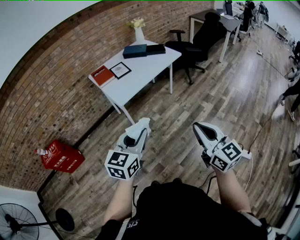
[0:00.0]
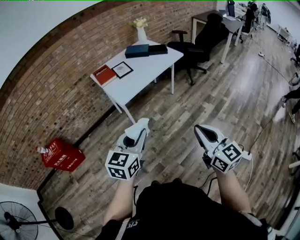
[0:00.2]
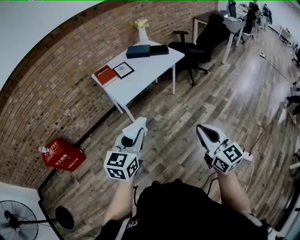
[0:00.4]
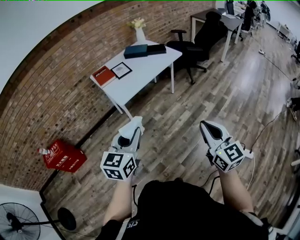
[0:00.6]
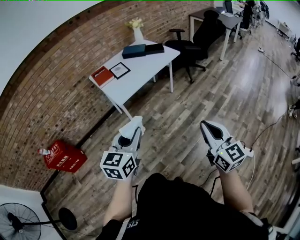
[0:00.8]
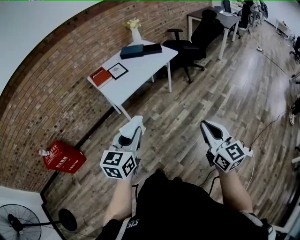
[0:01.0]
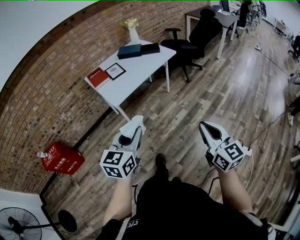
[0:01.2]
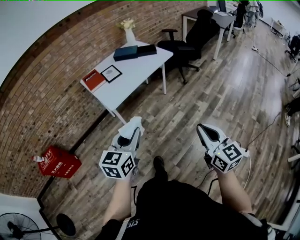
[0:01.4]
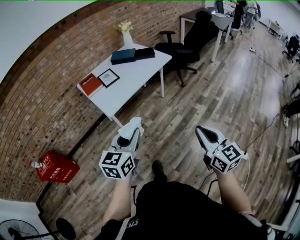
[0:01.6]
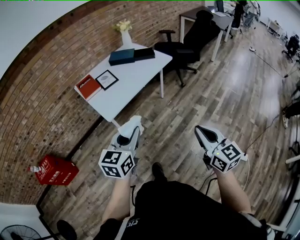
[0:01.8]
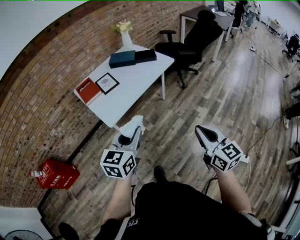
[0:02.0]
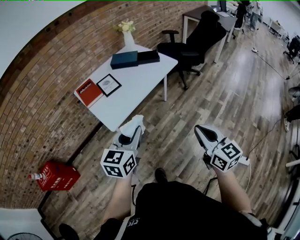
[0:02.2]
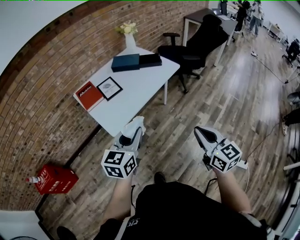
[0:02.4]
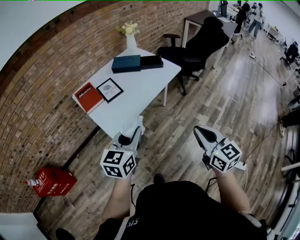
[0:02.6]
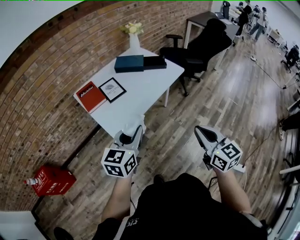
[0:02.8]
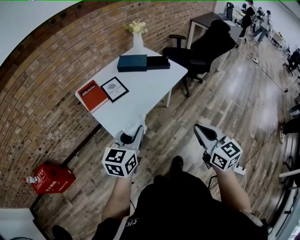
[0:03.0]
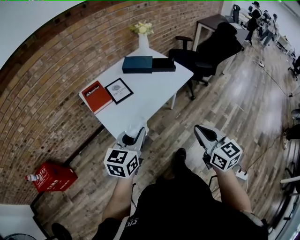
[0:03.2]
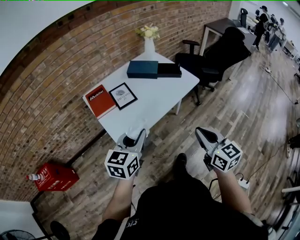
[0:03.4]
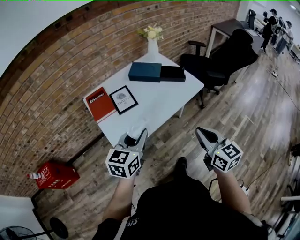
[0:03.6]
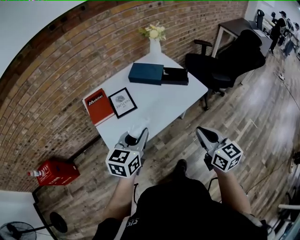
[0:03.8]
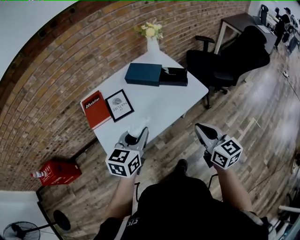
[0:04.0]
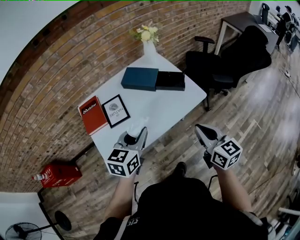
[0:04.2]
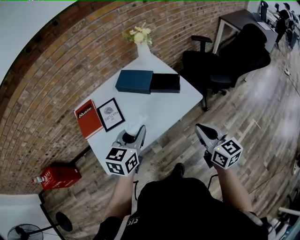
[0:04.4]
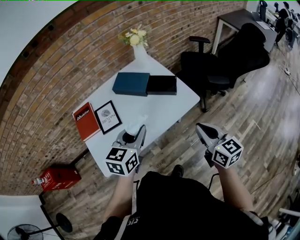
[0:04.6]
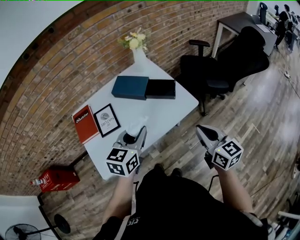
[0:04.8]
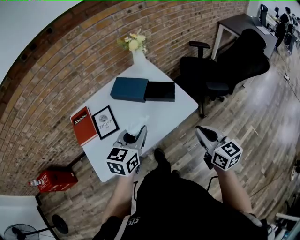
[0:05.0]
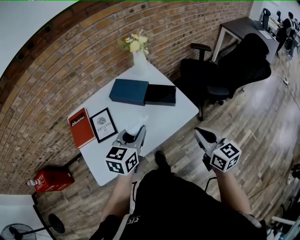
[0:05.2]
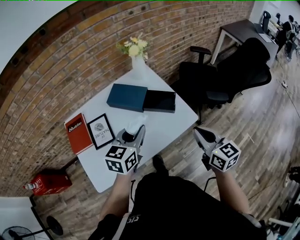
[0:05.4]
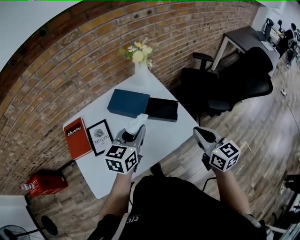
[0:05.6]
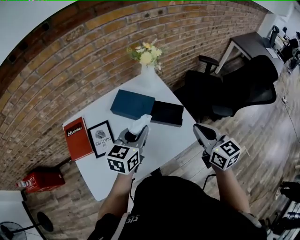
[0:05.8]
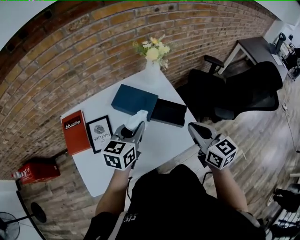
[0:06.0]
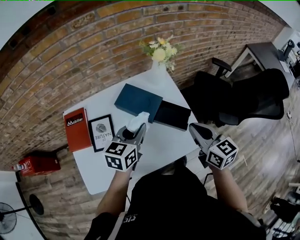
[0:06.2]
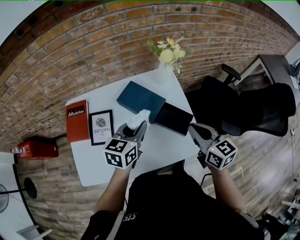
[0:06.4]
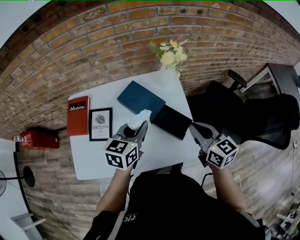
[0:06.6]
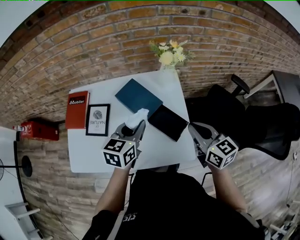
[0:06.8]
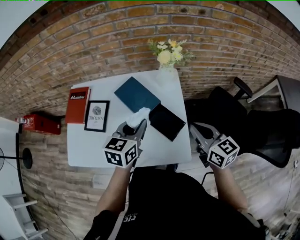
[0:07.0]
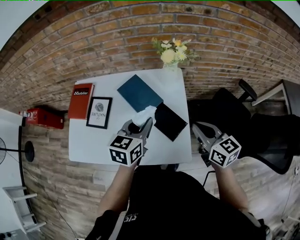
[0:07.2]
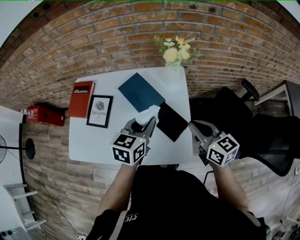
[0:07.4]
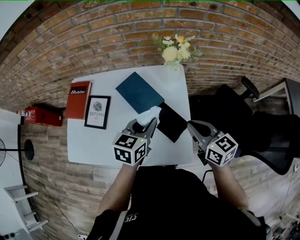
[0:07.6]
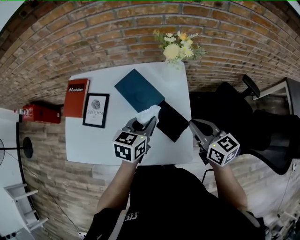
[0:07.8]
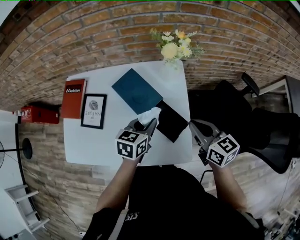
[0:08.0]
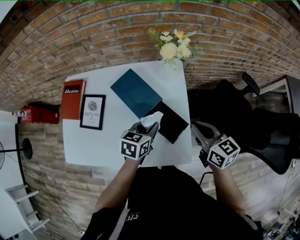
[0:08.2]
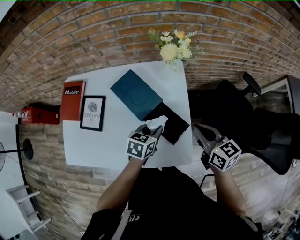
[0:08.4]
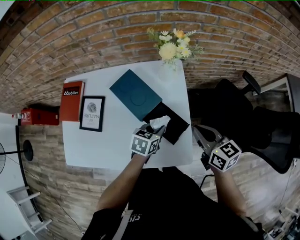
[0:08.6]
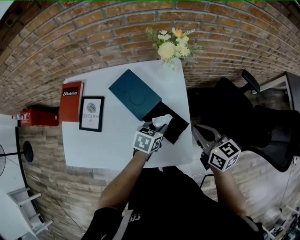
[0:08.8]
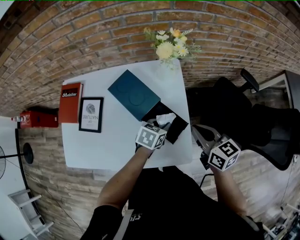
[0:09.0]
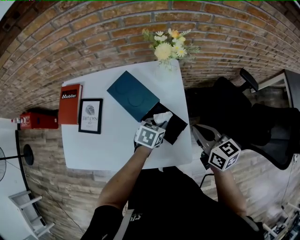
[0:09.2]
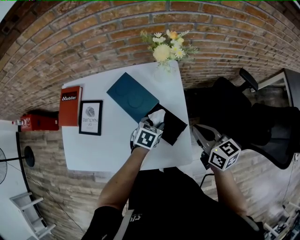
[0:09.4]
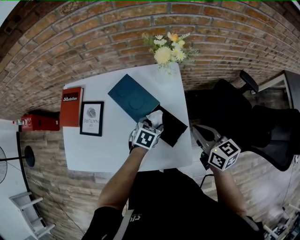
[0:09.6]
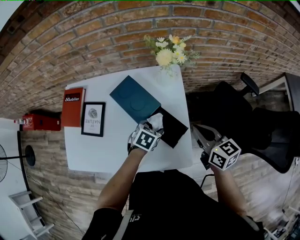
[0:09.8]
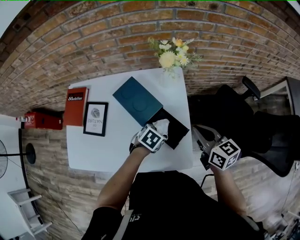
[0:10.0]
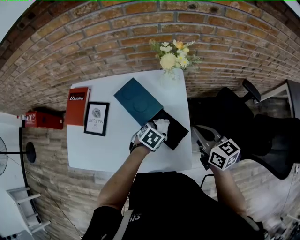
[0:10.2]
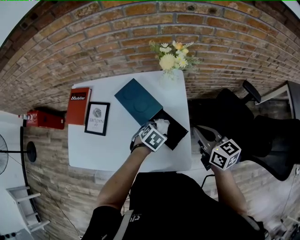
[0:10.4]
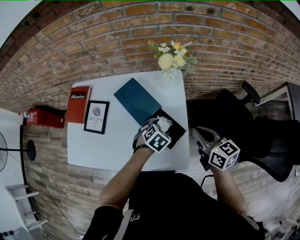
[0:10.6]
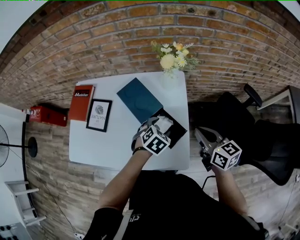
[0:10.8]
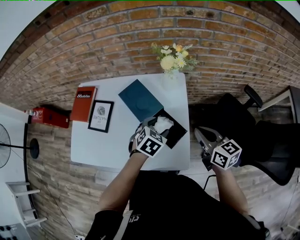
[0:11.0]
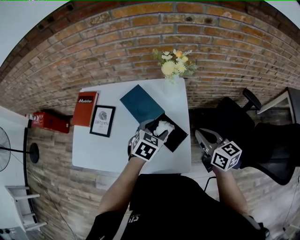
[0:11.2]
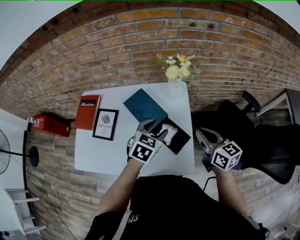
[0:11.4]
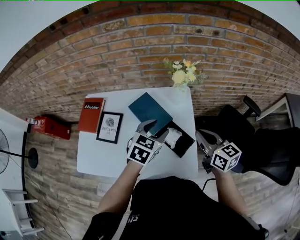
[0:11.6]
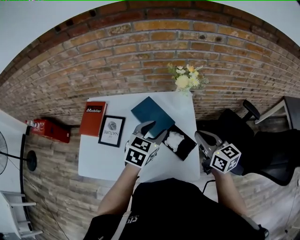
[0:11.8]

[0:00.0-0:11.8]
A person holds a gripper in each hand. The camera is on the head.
0:00.0 to 0:01.4: The right gripper goes some 5 cm to the right.
0:01.4 to 0:03.0: The right gripper moves forward and to the left, roughly 30 cm, while the left gripper is displaced forward by some 30 cm.
0:03.0 to 0:04.4: Both grippers move forward and to the right, approximately 35 cm.
0:04.4 to 0:06.0: The grippers both shift forward by some 25 cm.
0:06.0 to 0:07.4: The right gripper changes place by roughly 15 cm, and rotates some 30 degrees. Meanwhile the left gripper ends up approximately 10 cm from where it was, and changes its angle by roughly 20 degrees.
0:07.4 to 0:08.8: The left gripper heads downward, covering about 15 cm, and changes its angle by about 30 degrees; the right gripper shifts approximately 5 cm downward.
0:08.8 to 0:10.4: The left gripper rotates about 30 degrees, and opens up.
0:10.4 to 0:11.8: The right gripper goes roughly 10 cm upward and to the left. Meanwhile the left gripper shifts about 20 cm upward, and tips its fingers upward by some 30 degrees.

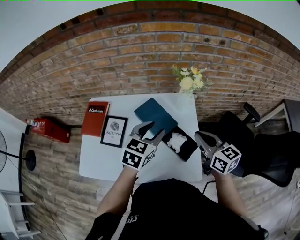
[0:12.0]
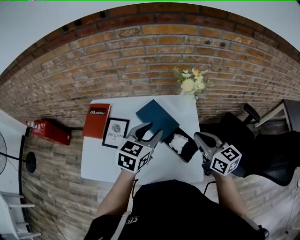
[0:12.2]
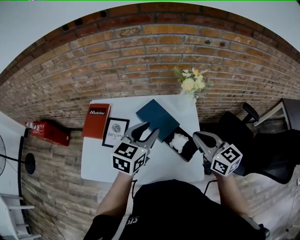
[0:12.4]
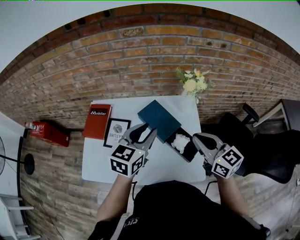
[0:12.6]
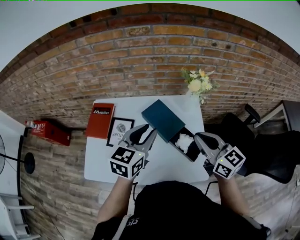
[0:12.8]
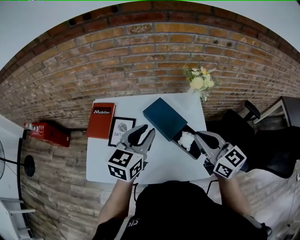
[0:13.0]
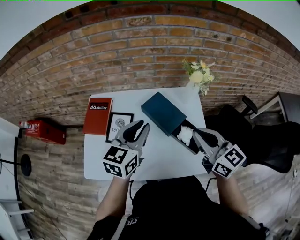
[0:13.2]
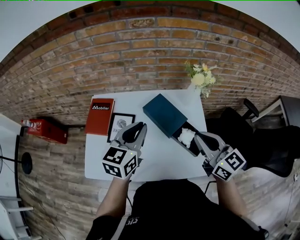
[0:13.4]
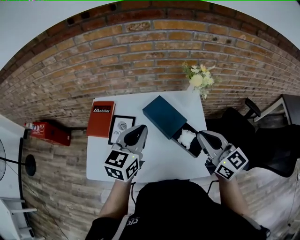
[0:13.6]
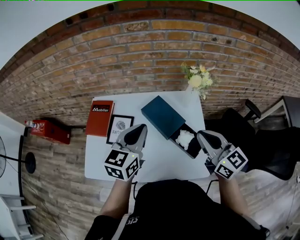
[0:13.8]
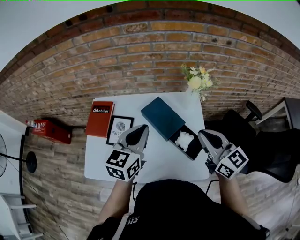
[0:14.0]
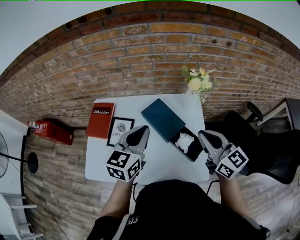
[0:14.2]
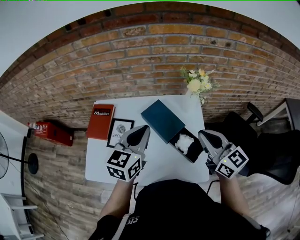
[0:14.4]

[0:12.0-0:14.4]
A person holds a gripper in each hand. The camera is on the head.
0:12.0 to 0:13.2: The left gripper travels to the left by some 15 cm, and closes its fingers; the right gripper travels to the left and upward by roughly 10 cm.
0:13.2 to 0:14.4: The right gripper travels to the right by roughly 5 cm.

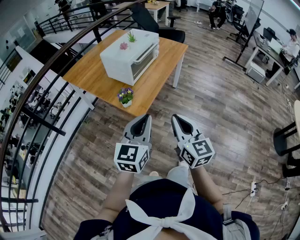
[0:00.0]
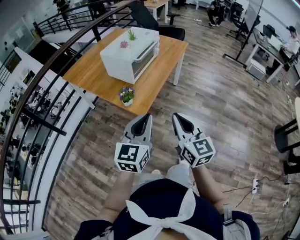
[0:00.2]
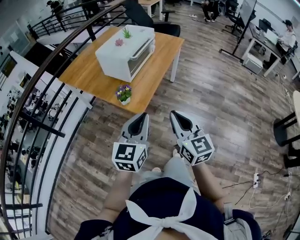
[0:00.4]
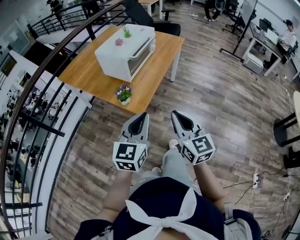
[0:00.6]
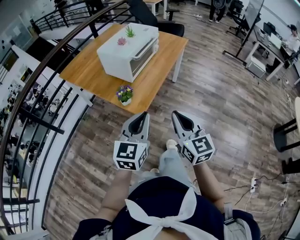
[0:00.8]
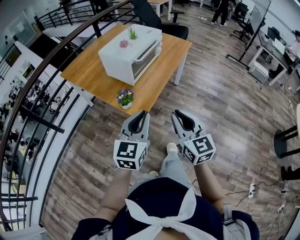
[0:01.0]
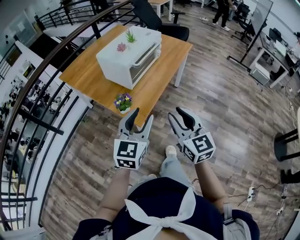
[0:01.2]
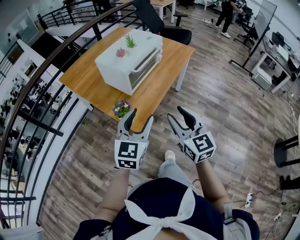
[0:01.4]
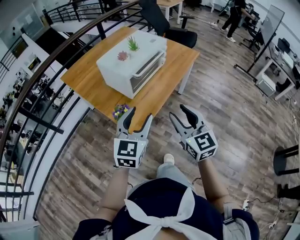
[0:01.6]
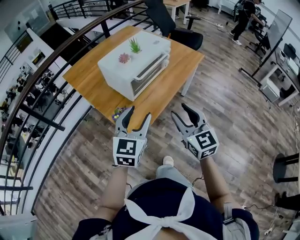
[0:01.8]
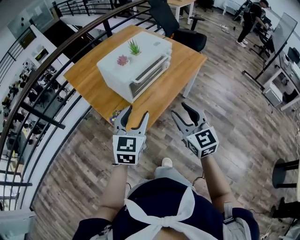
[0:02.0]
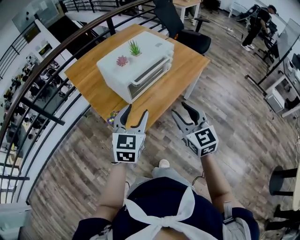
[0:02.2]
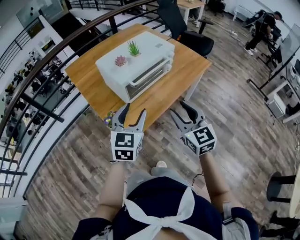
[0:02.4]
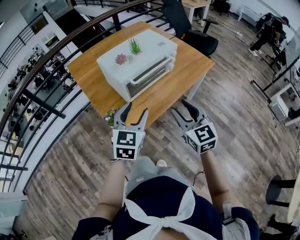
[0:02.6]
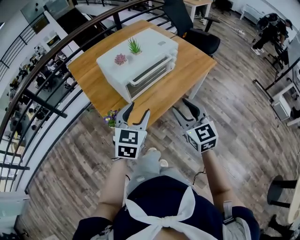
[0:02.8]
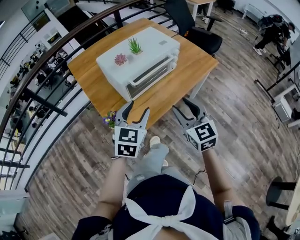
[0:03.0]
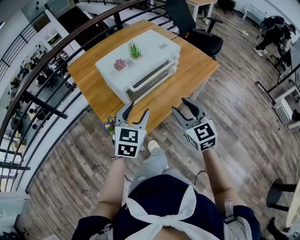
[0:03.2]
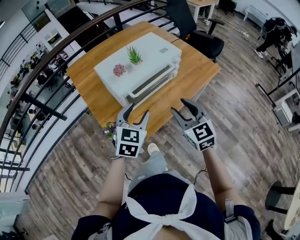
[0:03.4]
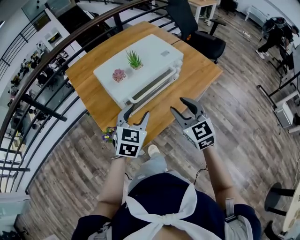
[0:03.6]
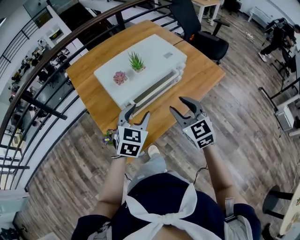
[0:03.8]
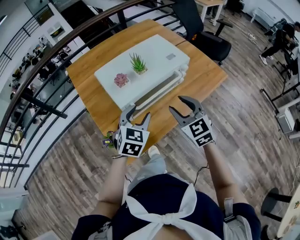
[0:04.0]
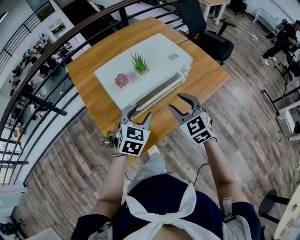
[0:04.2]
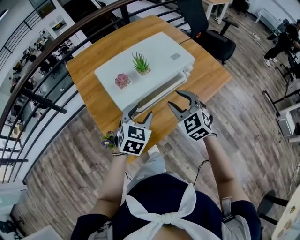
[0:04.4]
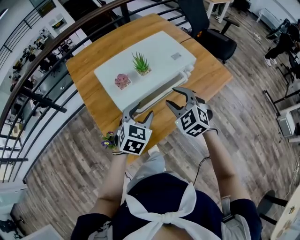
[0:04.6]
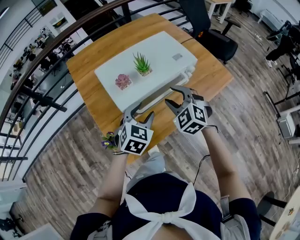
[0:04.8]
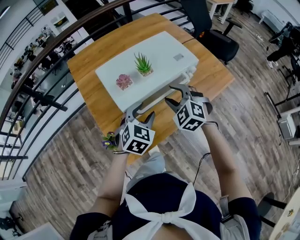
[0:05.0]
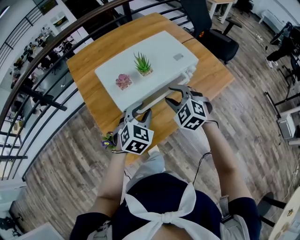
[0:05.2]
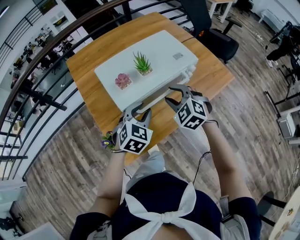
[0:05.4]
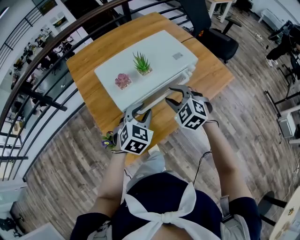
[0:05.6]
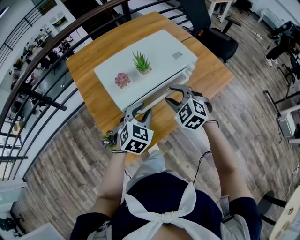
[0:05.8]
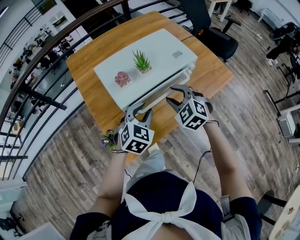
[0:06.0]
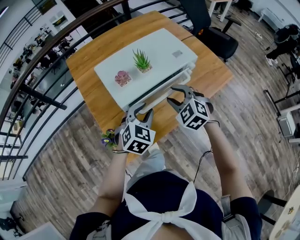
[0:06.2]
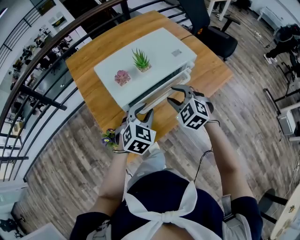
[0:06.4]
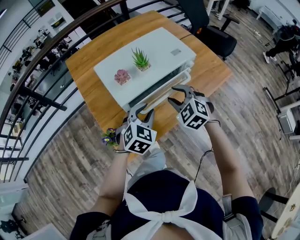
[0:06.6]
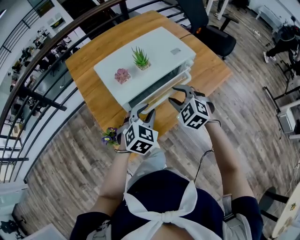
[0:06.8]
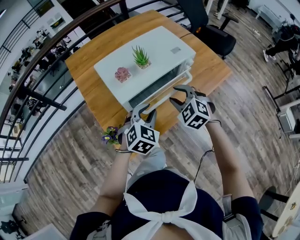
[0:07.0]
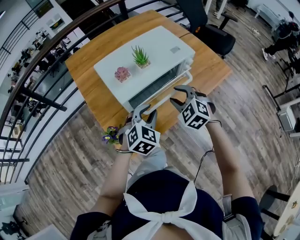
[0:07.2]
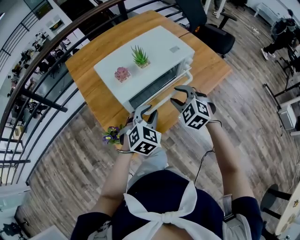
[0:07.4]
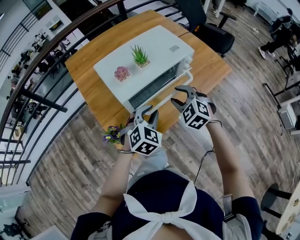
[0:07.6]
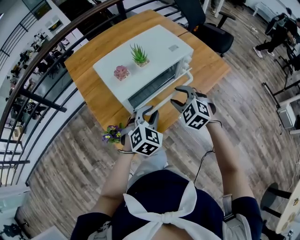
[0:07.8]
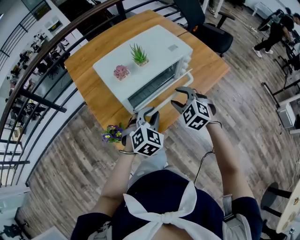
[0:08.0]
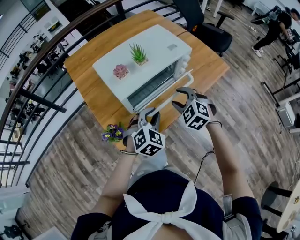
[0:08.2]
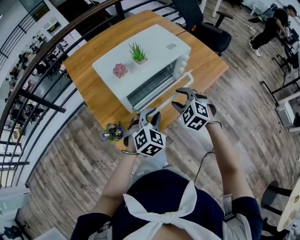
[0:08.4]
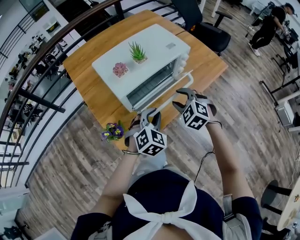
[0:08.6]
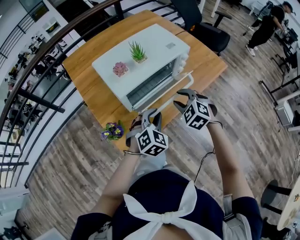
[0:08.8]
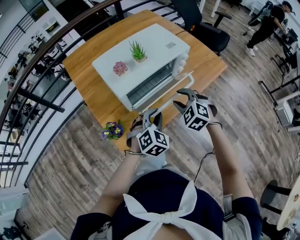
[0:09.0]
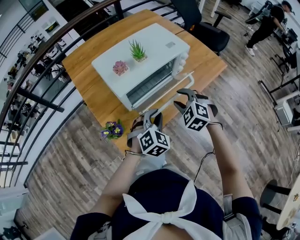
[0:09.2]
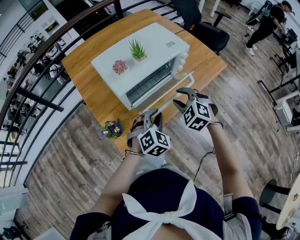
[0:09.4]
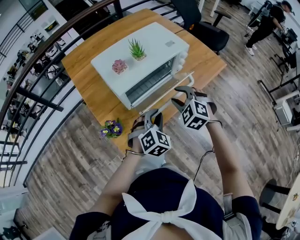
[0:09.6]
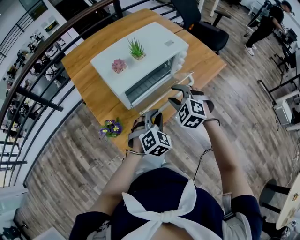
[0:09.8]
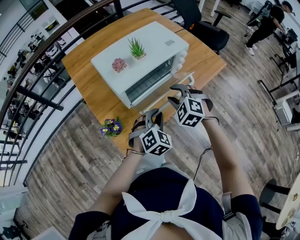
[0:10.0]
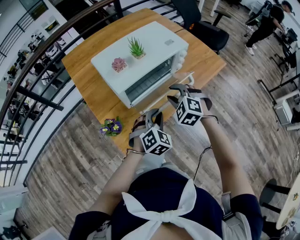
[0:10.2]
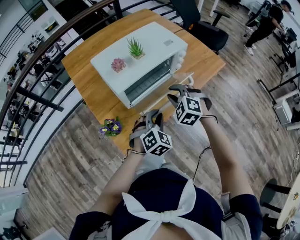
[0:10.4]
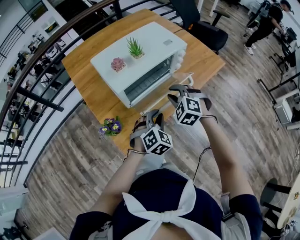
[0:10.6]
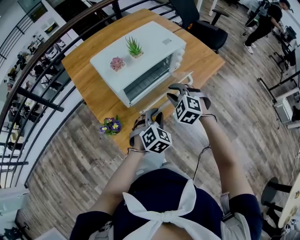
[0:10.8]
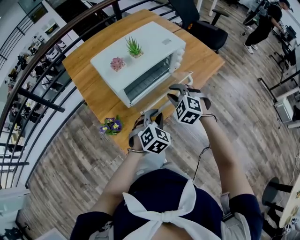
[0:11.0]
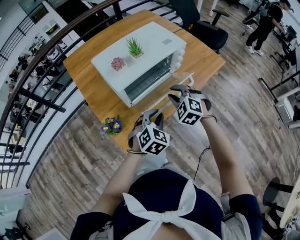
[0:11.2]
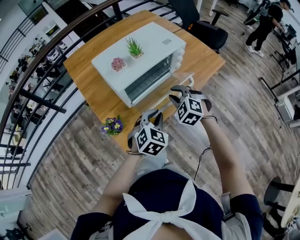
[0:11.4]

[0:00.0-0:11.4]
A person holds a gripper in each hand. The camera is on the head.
0:00.0 to 0:01.4: The grippers both shift forward by approximately 15 cm. The right gripper opens its fingers; the left gripper opens its fingers.
0:01.4 to 0:02.8: The grippers both shift forward and to the right by some 20 cm. The left gripper swivels about 20 degrees.
0:02.8 to 0:04.2: Both grippers move forward, roughly 15 cm. The right gripper turns by some 20 degrees.
0:04.2 to 0:05.6: The right gripper goes some 5 cm forward, and swivels some 20 degrees. Meanwhile the left gripper closes.
0:05.6 to 0:07.2: There are only small adjustments of the grippers.
0:07.2 to 0:08.6: The grippers move only a little.
0:08.6 to 0:11.4: There are only small adjustments of the grippers.
